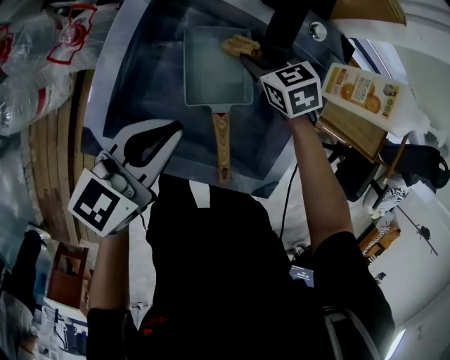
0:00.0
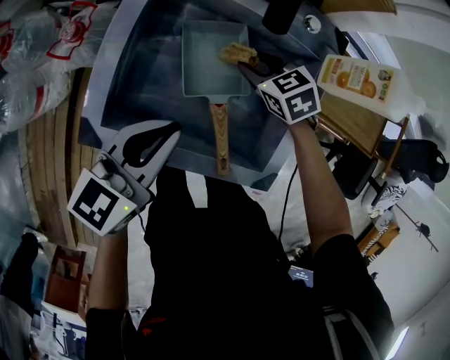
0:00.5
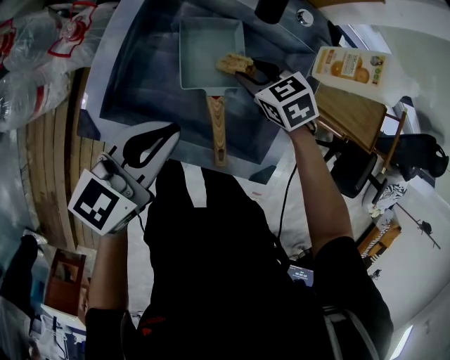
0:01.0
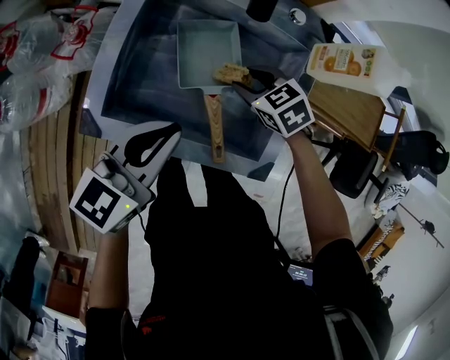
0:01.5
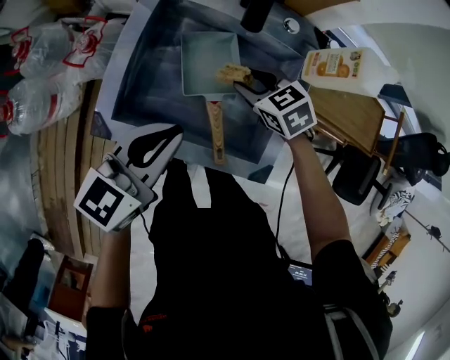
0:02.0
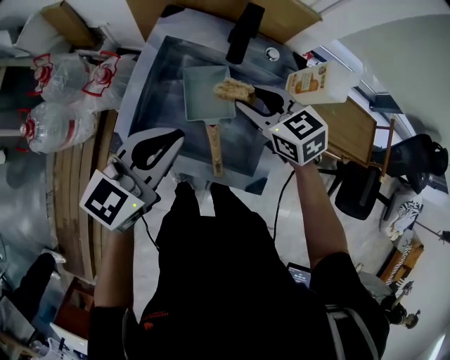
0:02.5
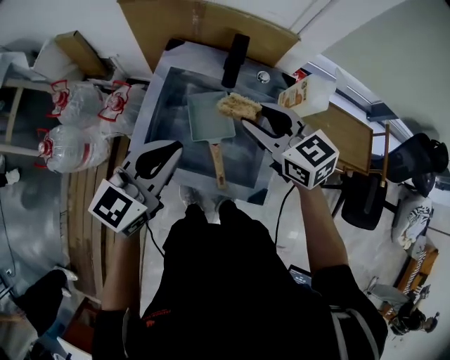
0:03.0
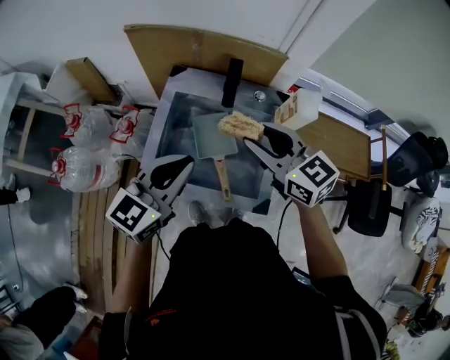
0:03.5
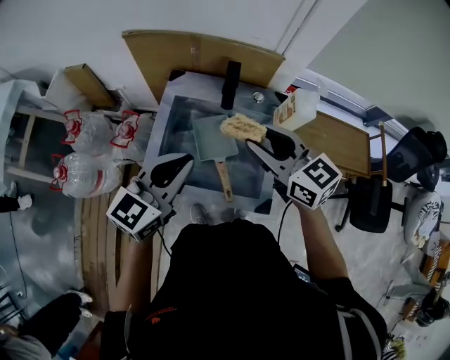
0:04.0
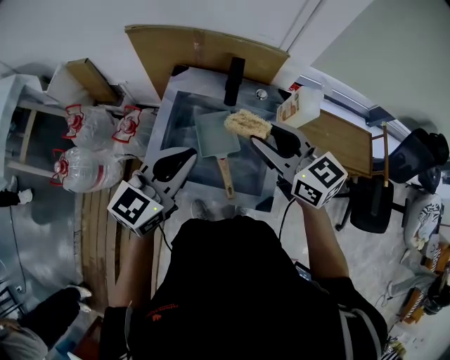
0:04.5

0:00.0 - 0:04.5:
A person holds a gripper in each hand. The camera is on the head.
0:00.0 - 0:02.0: The right gripper is displaced backward and upward by roughly 10 cm. The left gripper shifts roughly 10 cm upward and backward.
0:02.0 - 0:04.5: The right gripper moves upward, roughly 30 cm, and points its fingers some 40 degrees further upward; the left gripper goes about 15 cm upward.

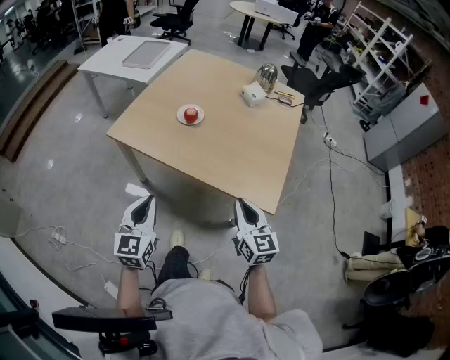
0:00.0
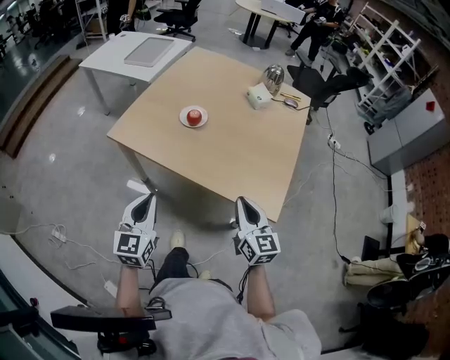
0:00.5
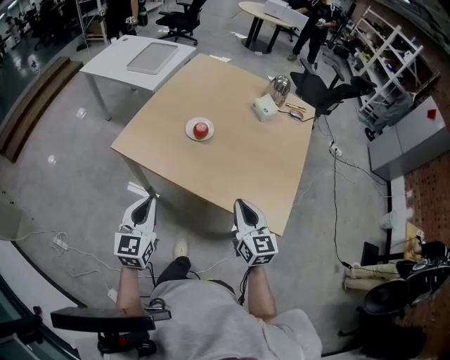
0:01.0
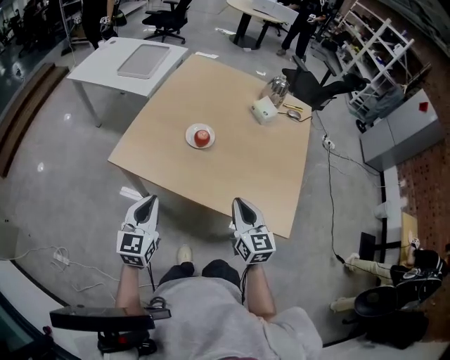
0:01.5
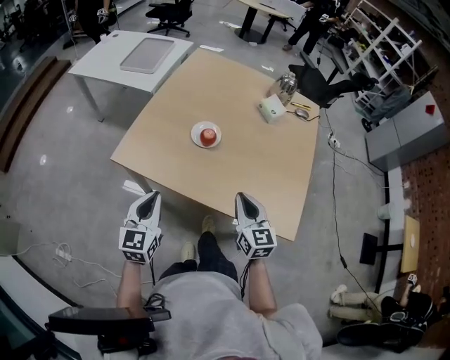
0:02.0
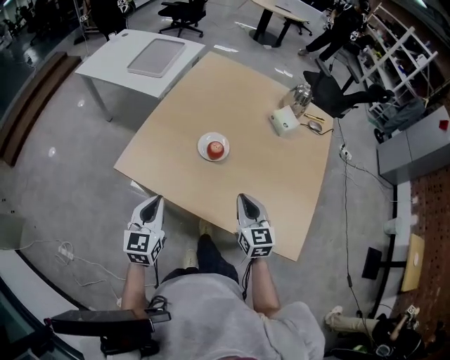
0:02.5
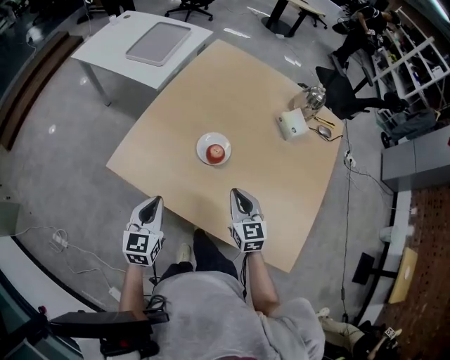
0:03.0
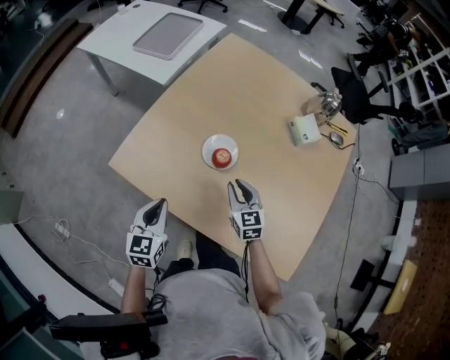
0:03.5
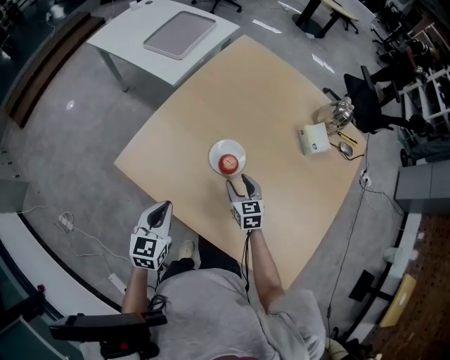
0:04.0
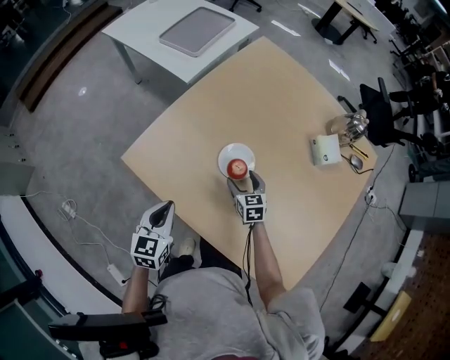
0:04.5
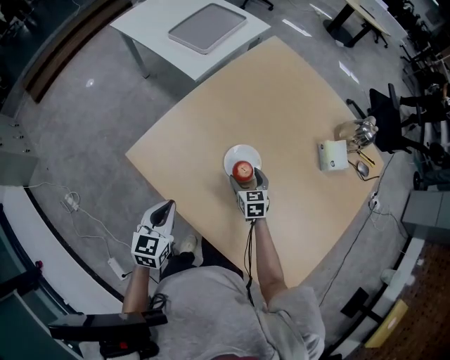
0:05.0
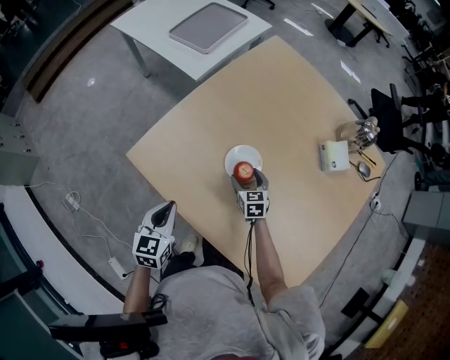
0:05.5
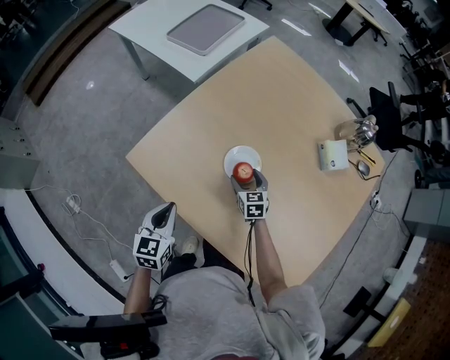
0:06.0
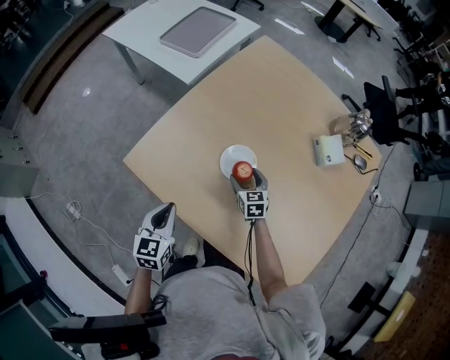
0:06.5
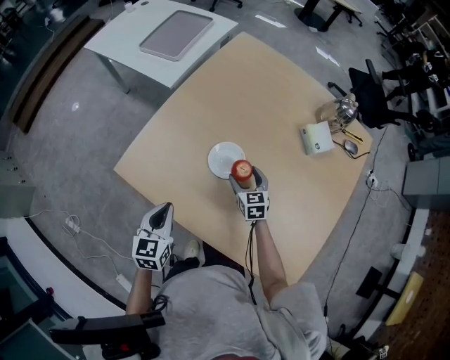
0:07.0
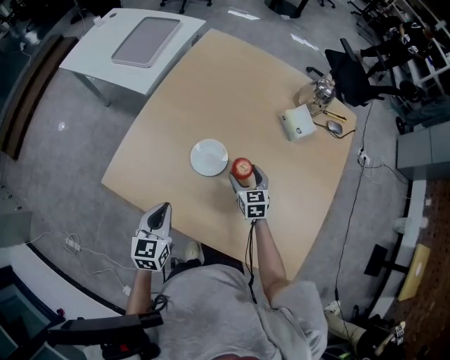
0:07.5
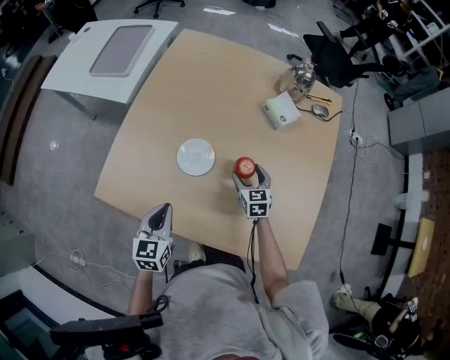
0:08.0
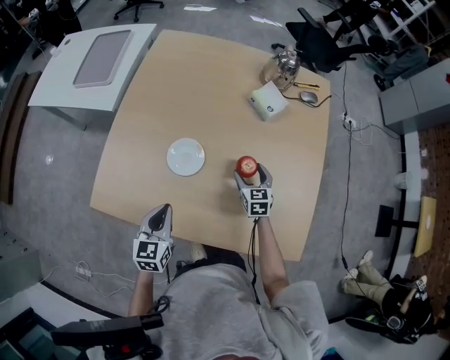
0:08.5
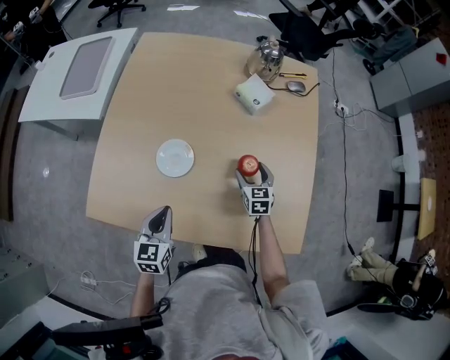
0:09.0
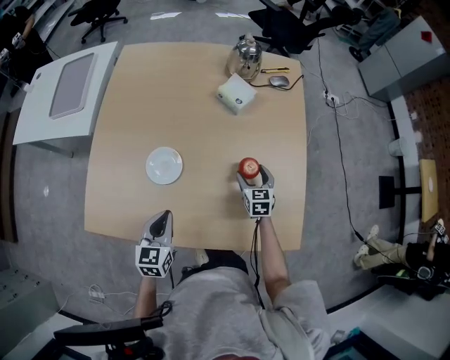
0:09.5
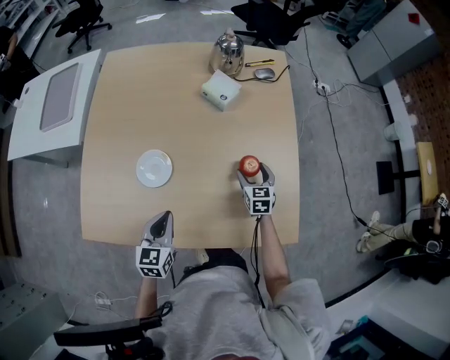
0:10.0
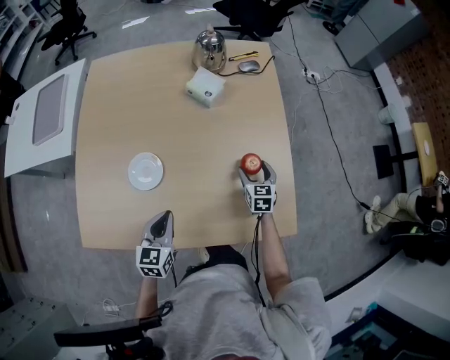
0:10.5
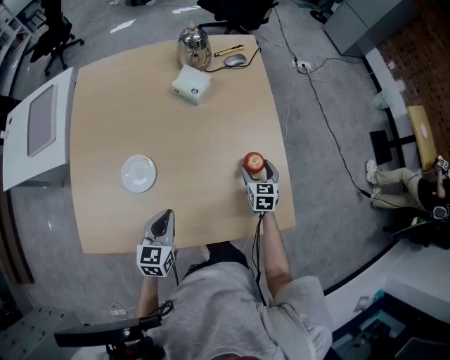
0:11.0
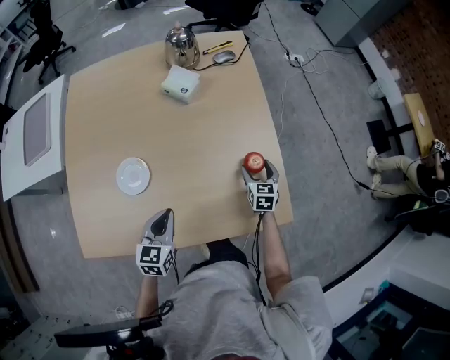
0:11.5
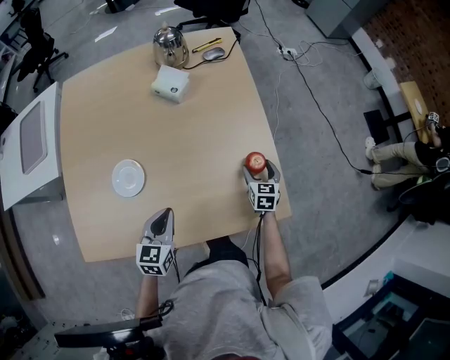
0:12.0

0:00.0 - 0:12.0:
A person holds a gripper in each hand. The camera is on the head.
0:00.0 - 0:02.0: The two grippers go roughly 20 cm forward and to the left.
0:02.0 - 0:04.0: The right gripper goes approximately 35 cm forward and downward, changes its angle by approximately 30 degrees, and opens up. The left gripper moves forward and downward, approximately 15 cm.
0:04.0 - 0:06.0: The right gripper heads downward and forward, covering some 10 cm, and opens its fingers.
0:06.0 - 0:08.0: The right gripper travels to the right by roughly 15 cm, and swivels roughly 20 degrees, while the left gripper travels to the right by roughly 10 cm.
0:08.0 - 0:10.0: The right gripper goes about 20 cm to the right, and rotates approximately 20 degrees, while the left gripper heads to the right, covering about 10 cm.
0:10.0 - 0:12.0: The left gripper heads to the right, covering about 10 cm. The right gripper goes roughly 15 cm to the right.

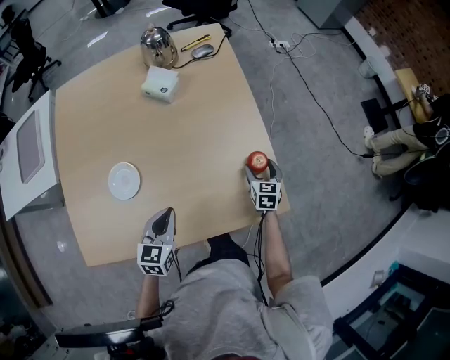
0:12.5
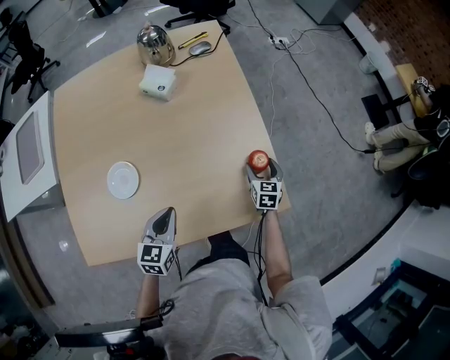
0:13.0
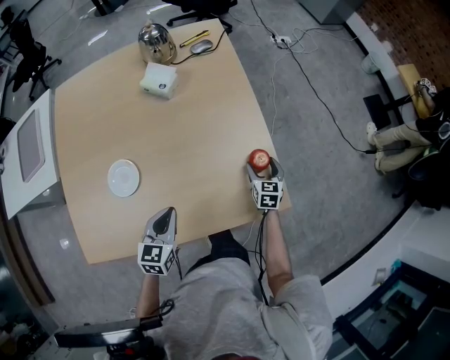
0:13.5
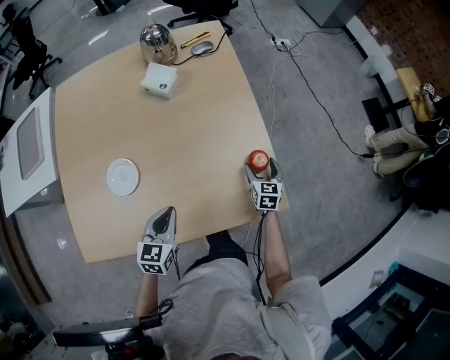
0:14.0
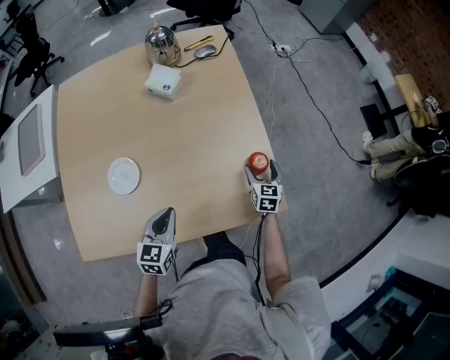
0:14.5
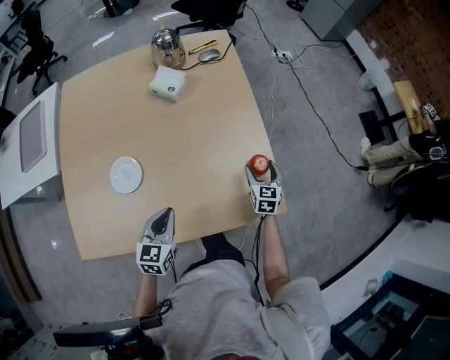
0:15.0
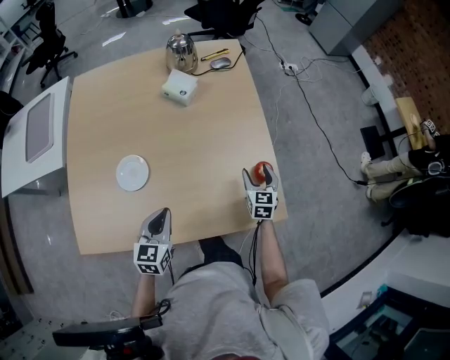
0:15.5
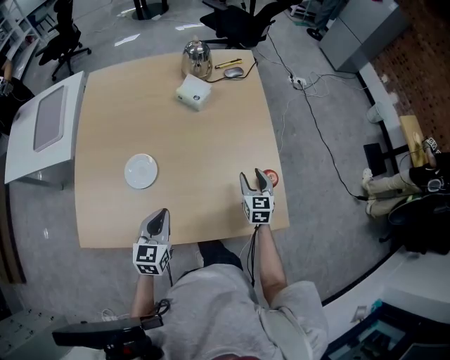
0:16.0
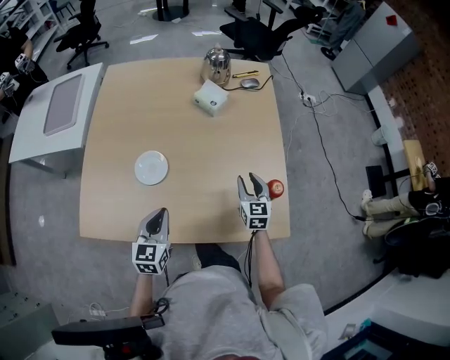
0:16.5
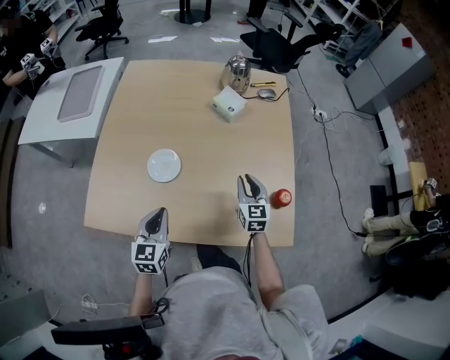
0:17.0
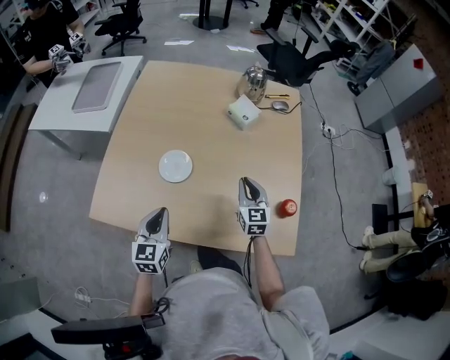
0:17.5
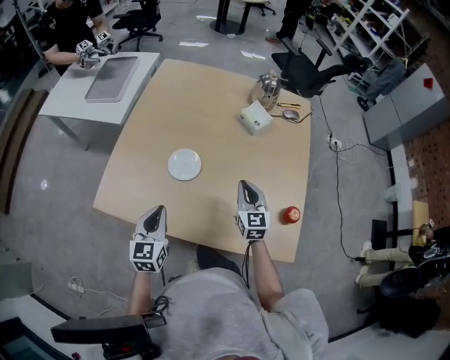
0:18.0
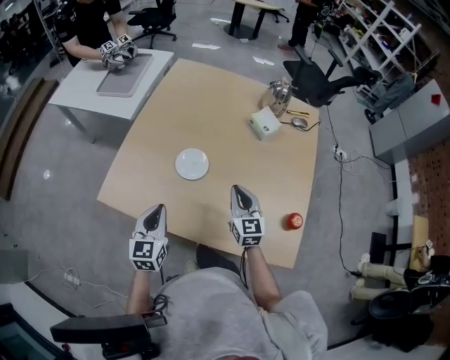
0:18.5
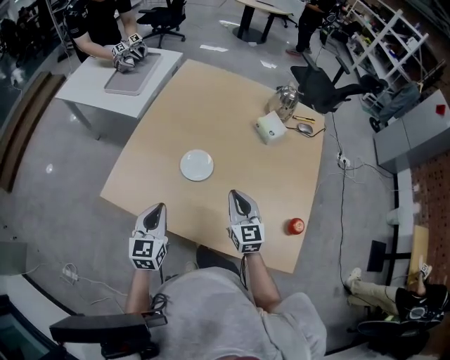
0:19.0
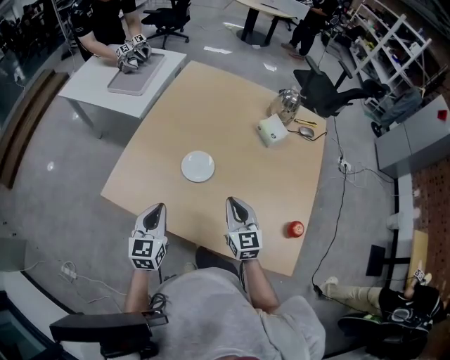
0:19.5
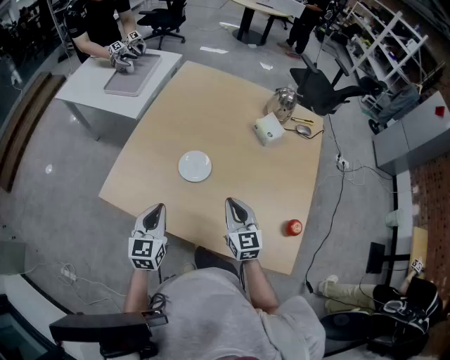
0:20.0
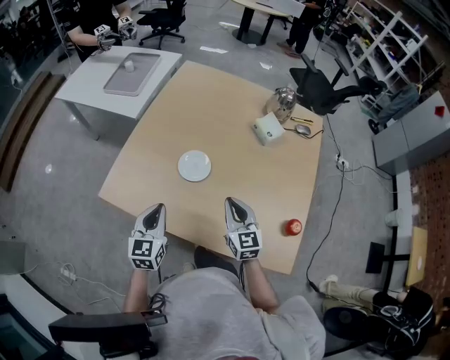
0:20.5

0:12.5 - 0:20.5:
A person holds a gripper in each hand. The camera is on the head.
0:12.5 - 0:14.5: The grippers stay close to where they were, moving slightly.
0:14.5 - 0:16.5: The right gripper travels to the left and upward by approximately 20 cm, swivels about 20 degrees, and closes; the left gripper is displaced to the left by some 10 cm.
0:16.5 - 0:18.5: The left gripper is displaced to the left by approximately 10 cm, and changes its angle by approximately 20 degrees, while the right gripper travels to the left by approximately 20 cm, rotates some 30 degrees, and closes its fingers.
0:18.5 - 0:20.5: The grippers stay close to where they were, moving slightly.

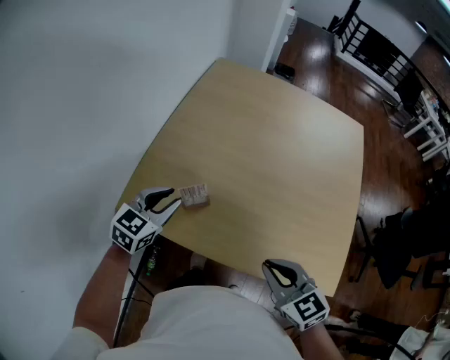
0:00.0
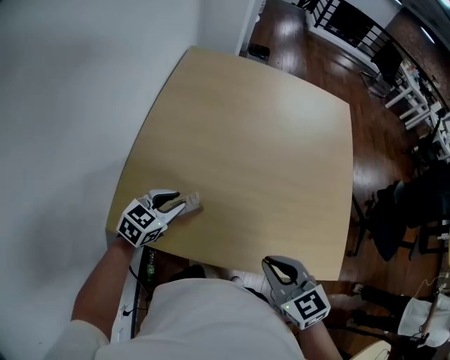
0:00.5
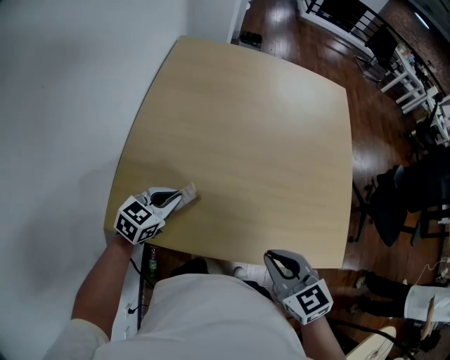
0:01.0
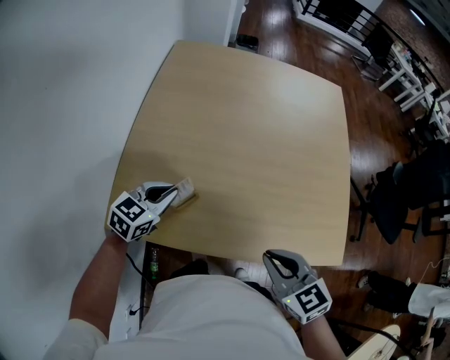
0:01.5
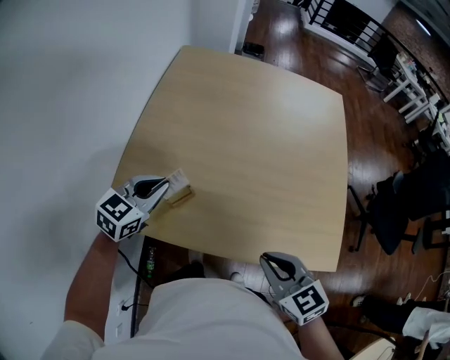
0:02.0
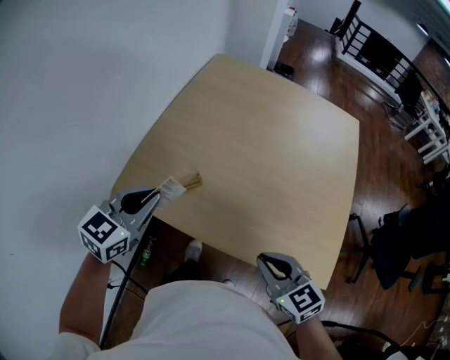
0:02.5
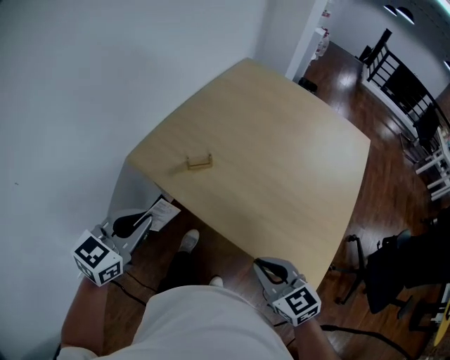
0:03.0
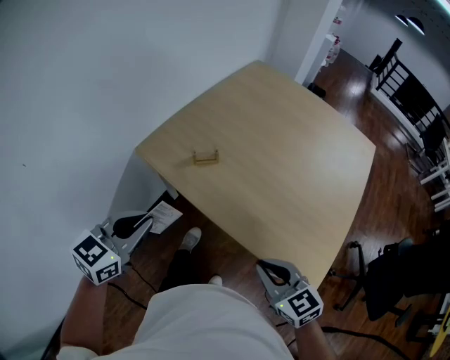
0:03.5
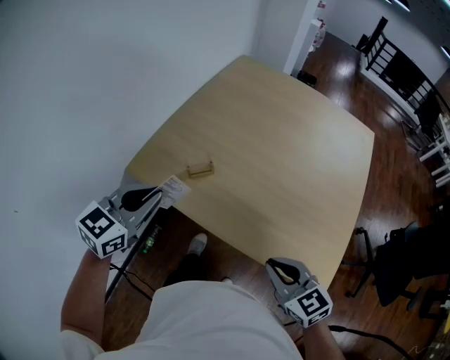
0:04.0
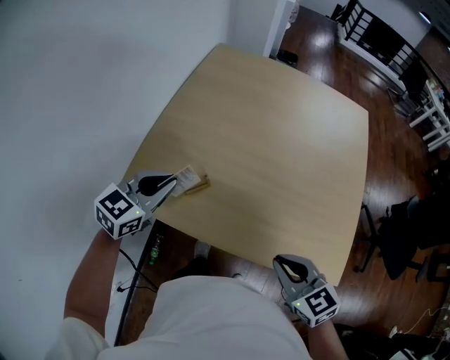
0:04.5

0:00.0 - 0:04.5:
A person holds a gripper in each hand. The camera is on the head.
0:00.0 - 0:02.0: The left gripper moves about 10 cm downward and comes back, and closes its fingers.
